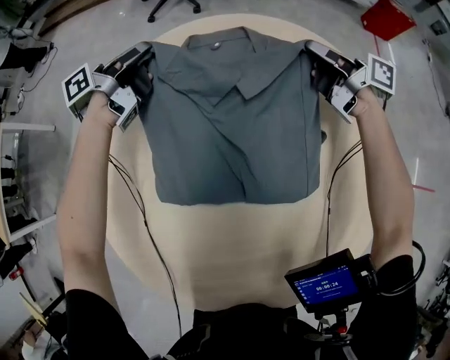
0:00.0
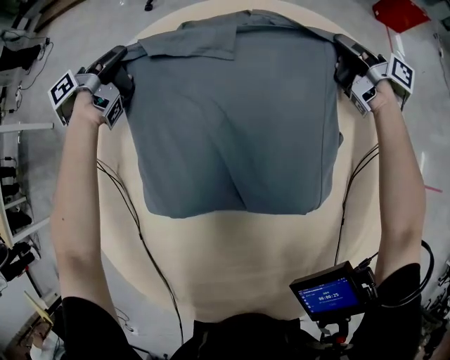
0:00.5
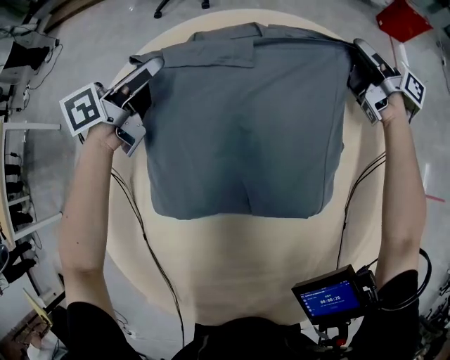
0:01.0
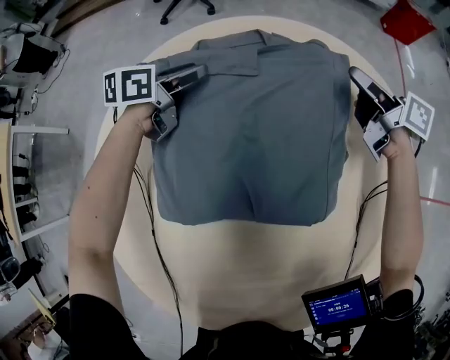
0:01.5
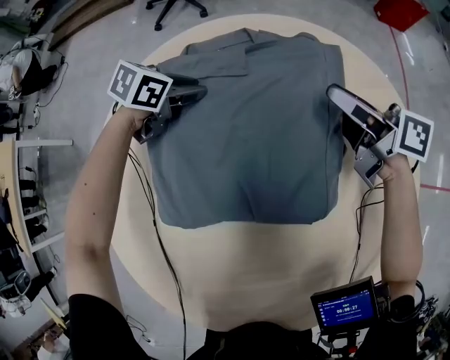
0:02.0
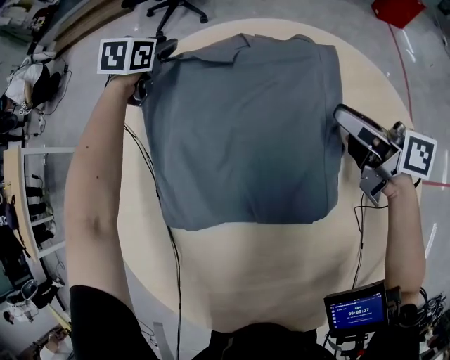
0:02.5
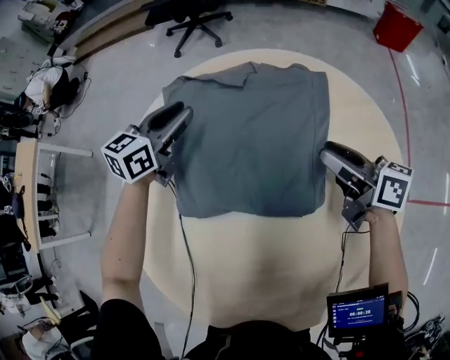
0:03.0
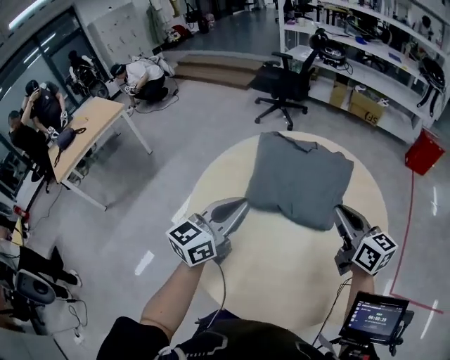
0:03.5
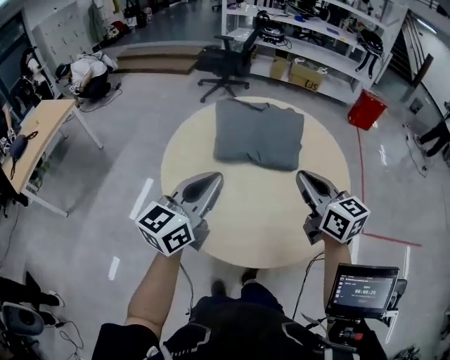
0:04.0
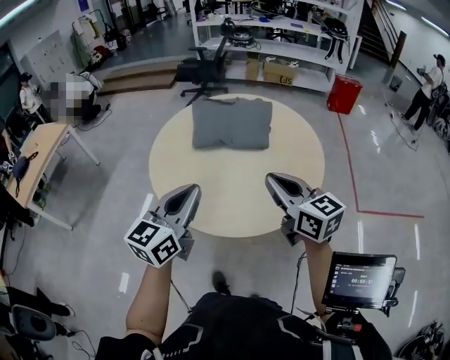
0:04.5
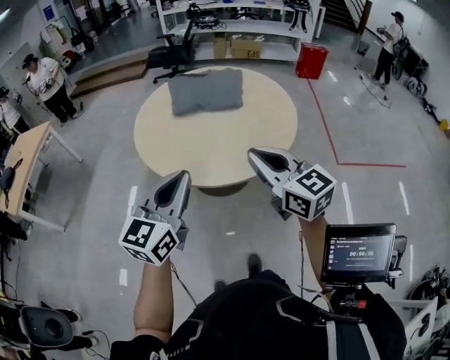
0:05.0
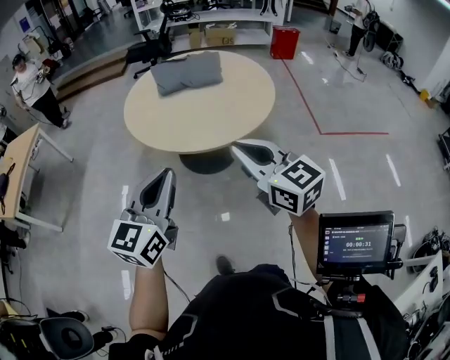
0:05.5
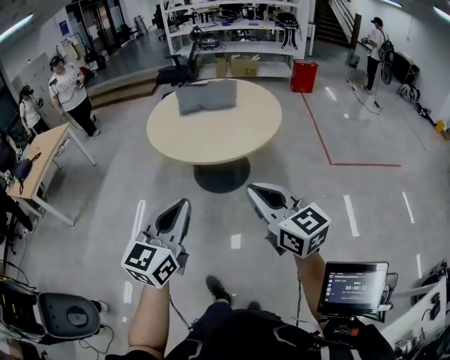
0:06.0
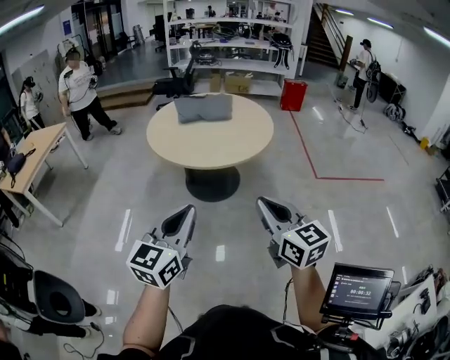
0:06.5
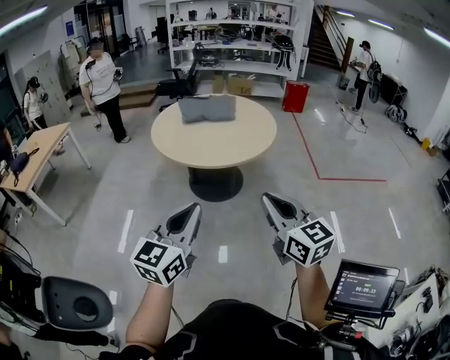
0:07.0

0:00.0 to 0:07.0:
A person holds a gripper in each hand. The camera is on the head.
0:00.0 to 0:02.0: The right gripper goes some 10 cm backward, and opens its fingers; the left gripper heads to the right and downward, covering approximately 20 cm, and tips its fingers downward by some 40 degrees.
0:02.0 to 0:03.5: The right gripper shifts about 35 cm backward and upward, rotates some 30 degrees, and closes its fingers. The left gripper goes approximately 50 cm backward and upward, and points its fingers some 50 degrees further upward.
0:03.5 to 0:05.0: The pair of grippers is taken backward, some 50 cm.
0:05.0 to 0:07.0: Both grippers travel together backward, roughly 40 cm.

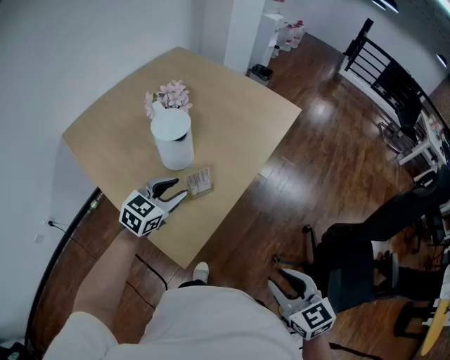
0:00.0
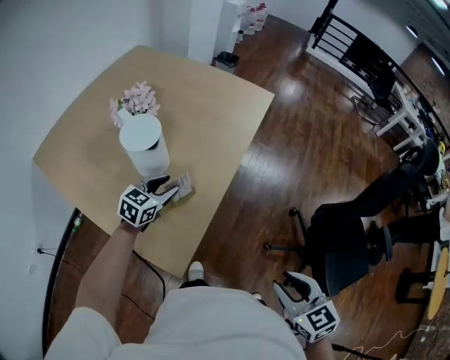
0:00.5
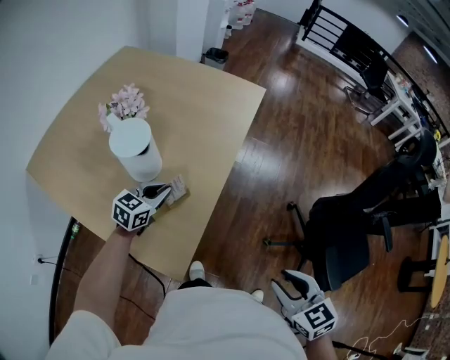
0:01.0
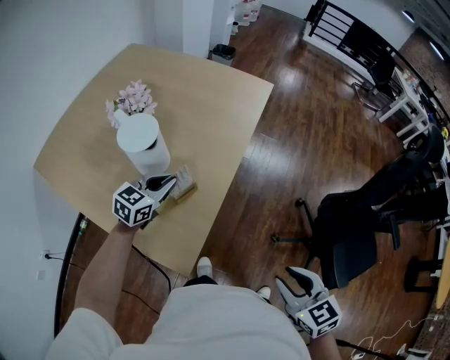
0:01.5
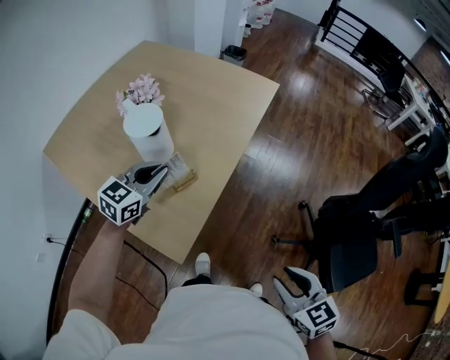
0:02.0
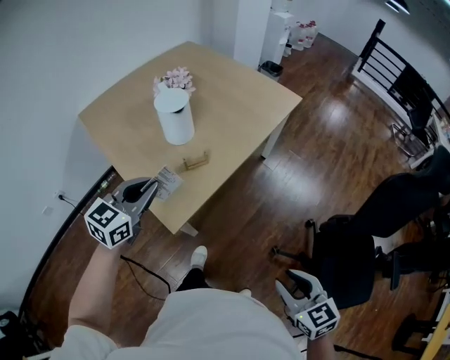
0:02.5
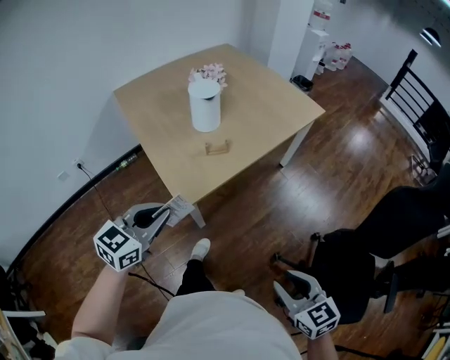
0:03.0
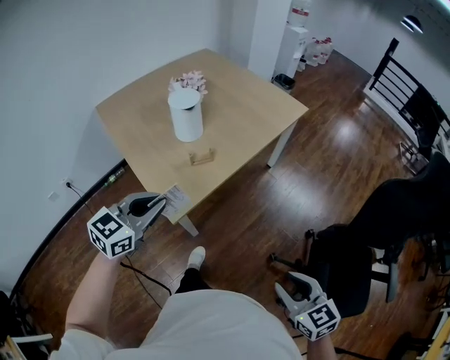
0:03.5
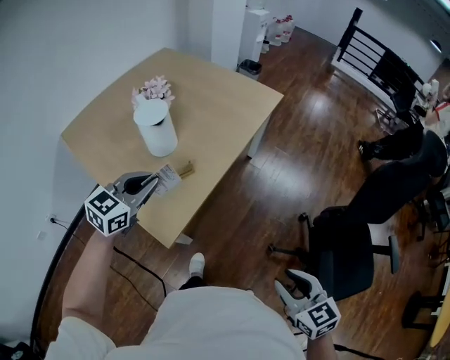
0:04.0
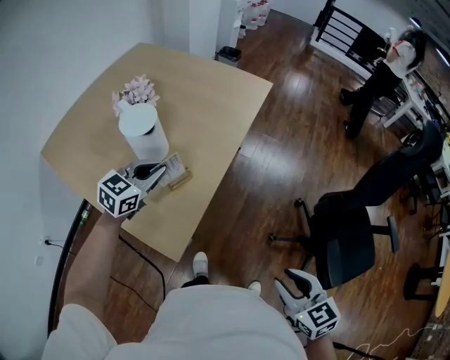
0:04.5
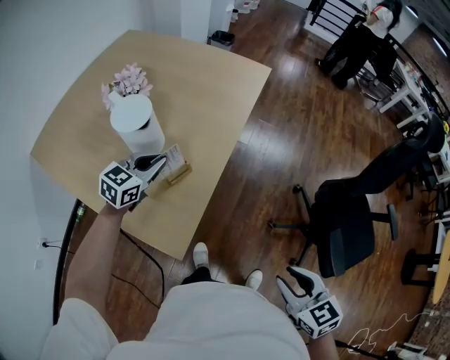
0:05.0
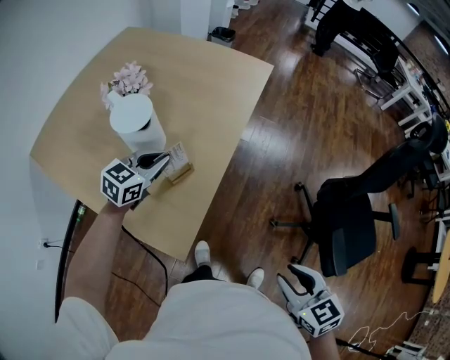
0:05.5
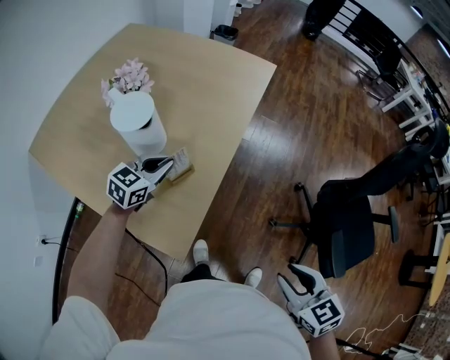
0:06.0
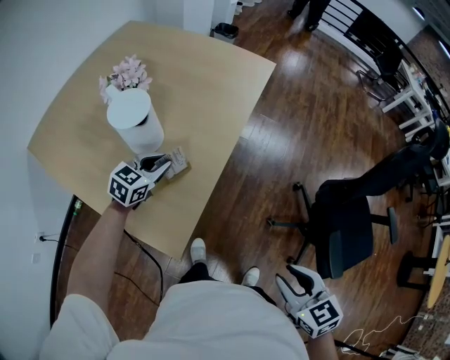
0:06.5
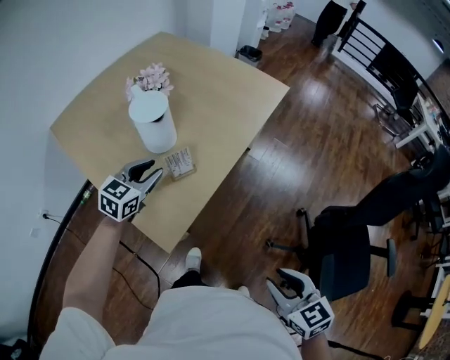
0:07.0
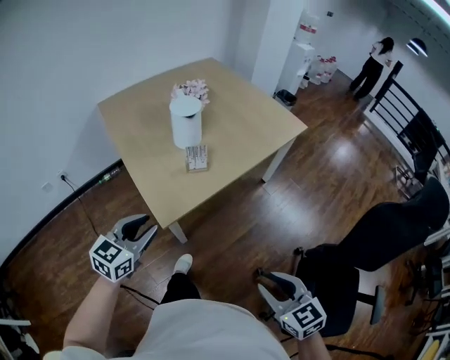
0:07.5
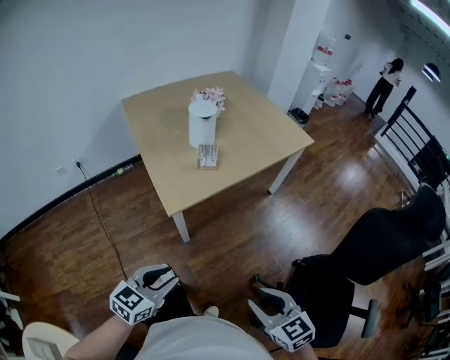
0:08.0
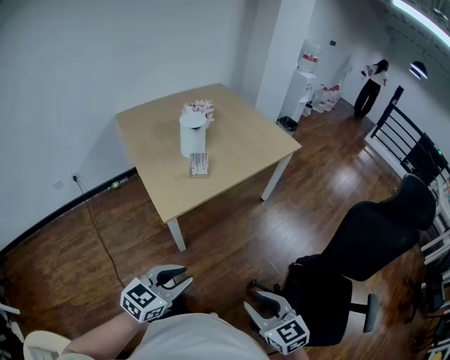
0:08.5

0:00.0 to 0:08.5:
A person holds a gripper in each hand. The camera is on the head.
0:00.0 to 0:02.0: The left gripper reaches roughly 10 cm downward, then returns, and closes its fingers.
0:02.0 to 0:04.0: The right gripper heads to the right and backward, covering about 10 cm; the left gripper is displaced upward by some 5 cm, and goes backward and returns, roughly 35 cm each way.
0:04.0 to 0:06.5: The left gripper moves downward and forward, approximately 20 cm. The right gripper moves to the left, some 10 cm.
0:06.5 to 0:08.5: The left gripper ends up approximately 60 cm from where it was, and turns by approximately 30 degrees. Meanwhile the right gripper moves roughly 20 cm, and changes its angle by roughly 40 degrees.

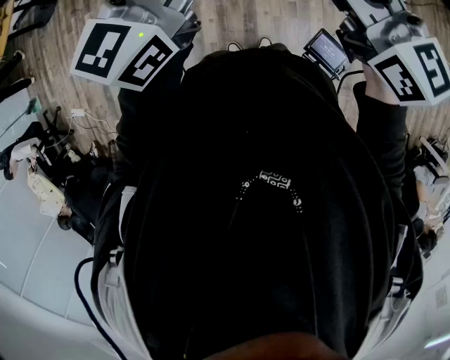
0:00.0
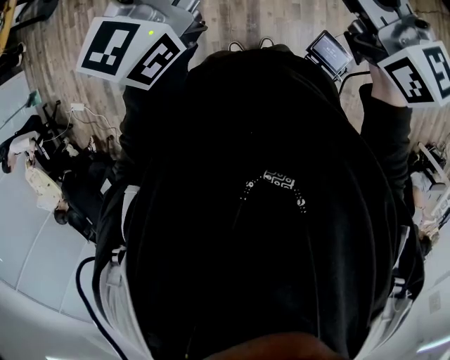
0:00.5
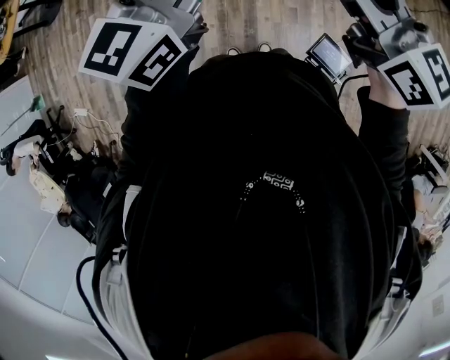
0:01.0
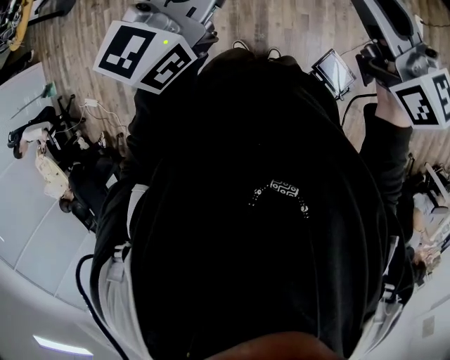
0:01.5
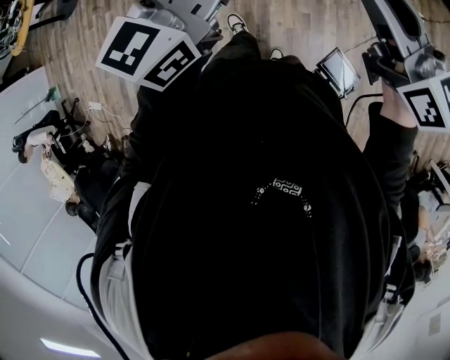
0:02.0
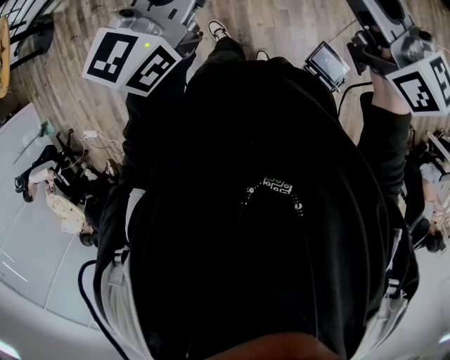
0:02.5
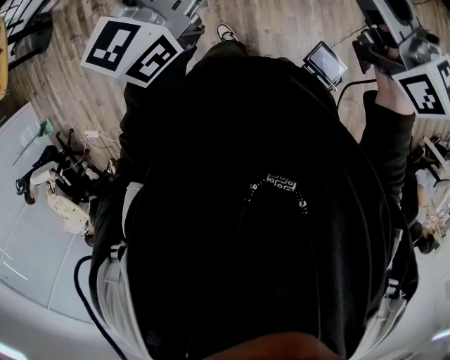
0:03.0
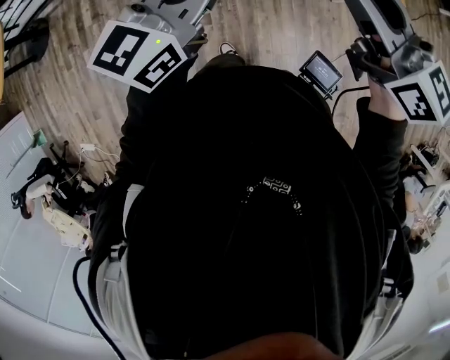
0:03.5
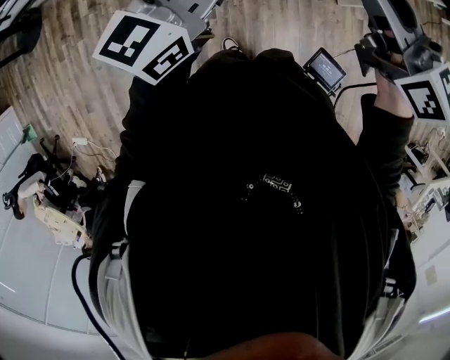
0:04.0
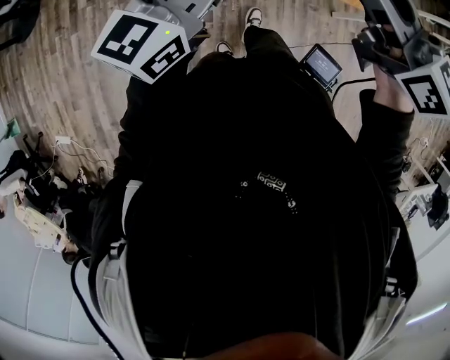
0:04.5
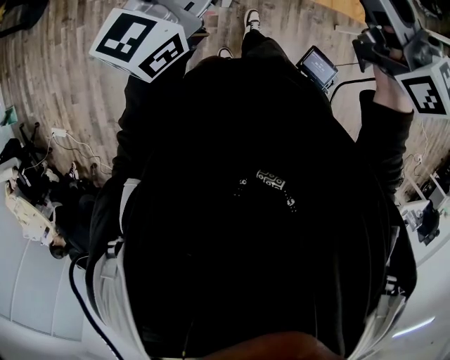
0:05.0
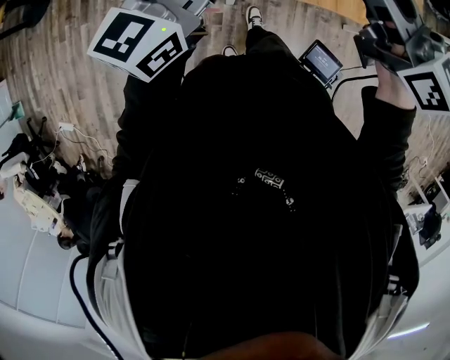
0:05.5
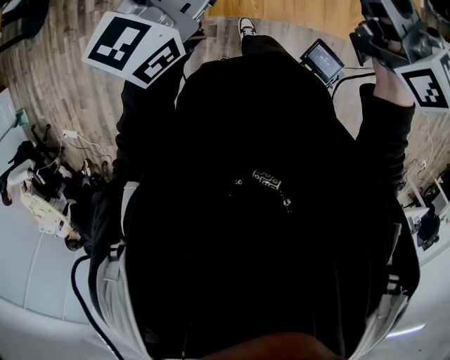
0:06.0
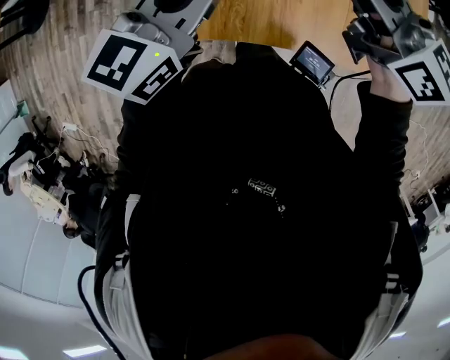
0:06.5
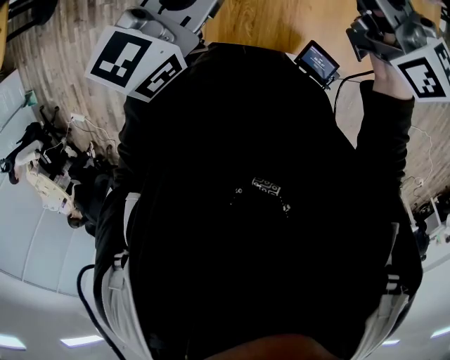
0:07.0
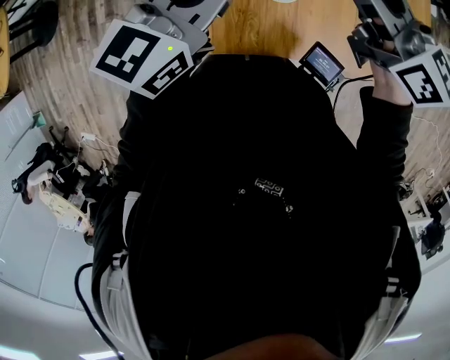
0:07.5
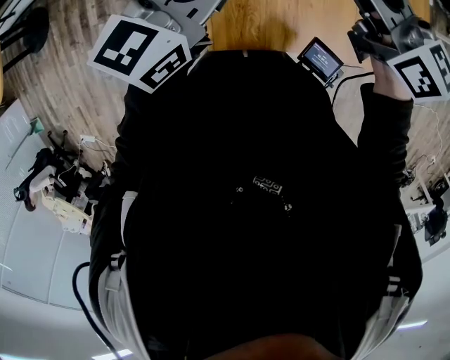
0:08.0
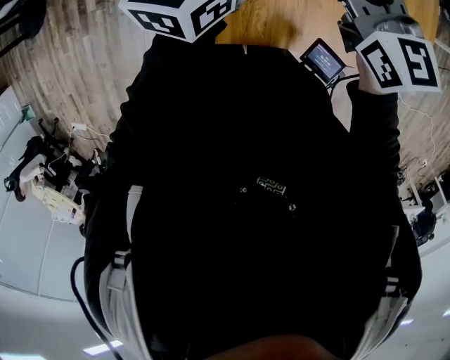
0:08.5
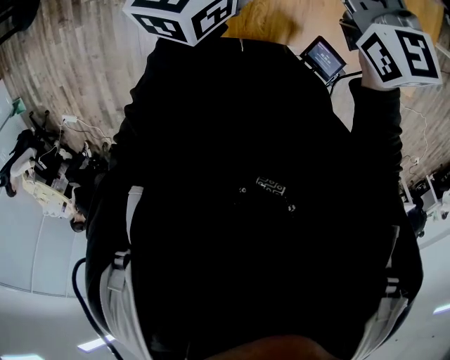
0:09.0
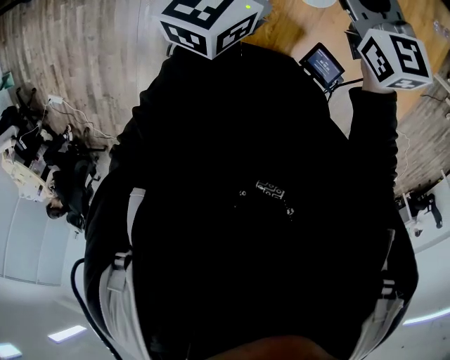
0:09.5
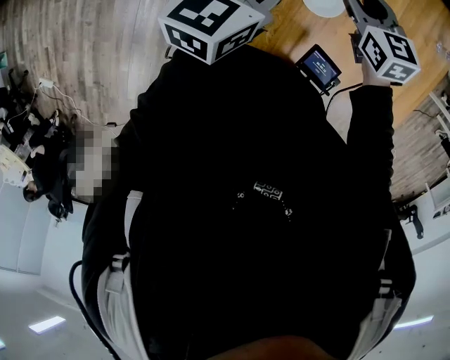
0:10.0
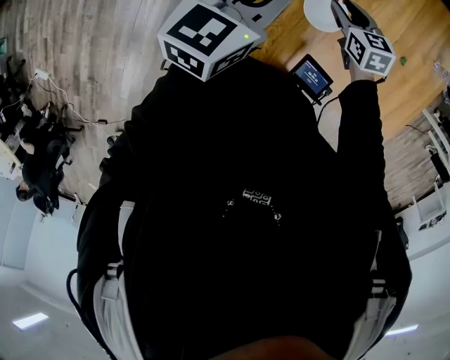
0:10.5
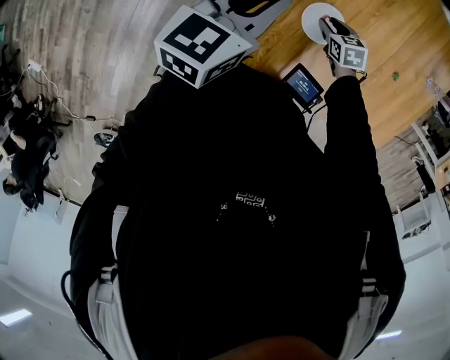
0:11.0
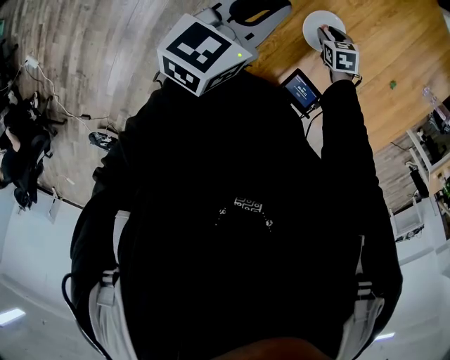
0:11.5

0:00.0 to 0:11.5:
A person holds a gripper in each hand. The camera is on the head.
0:00.0 to 0:02.0: The left gripper moves to the right, roughly 5 cm. Meanwhile the right gripper shifts roughly 10 cm to the right.
0:02.0 to 0:04.0: Both grippers move forward and to the left, about 35 cm.
0:04.0 to 0:06.0: The left gripper travels to the left and back again, roughly 10 cm each way.
0:06.0 to 0:07.5: Both grippers move forward and to the right, about 15 cm.
0:07.5 to 0:09.5: The left gripper moves downward, roughly 5 cm; the right gripper is displaced downward and to the left by about 15 cm, and turns by about 30 degrees.
0:09.5 to 0:11.5: The right gripper goes about 30 cm downward, and tips its fingers downward by approximately 40 degrees, while the left gripper moves backward, roughly 5 cm.
